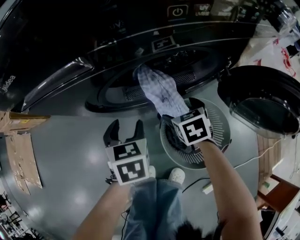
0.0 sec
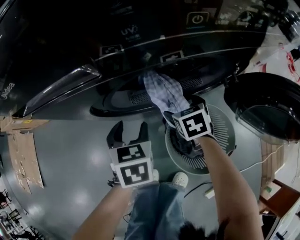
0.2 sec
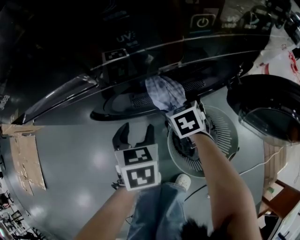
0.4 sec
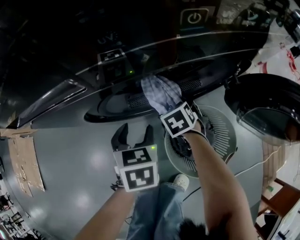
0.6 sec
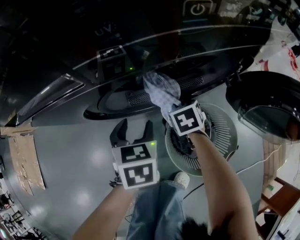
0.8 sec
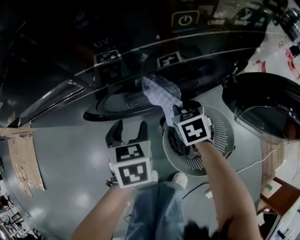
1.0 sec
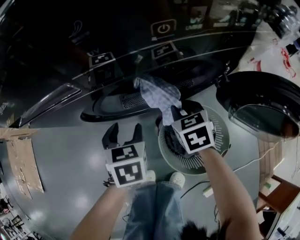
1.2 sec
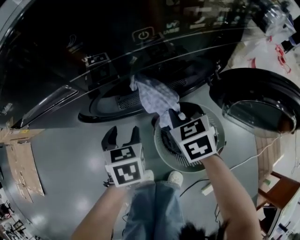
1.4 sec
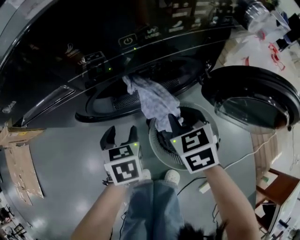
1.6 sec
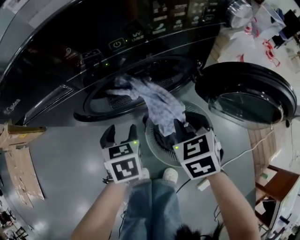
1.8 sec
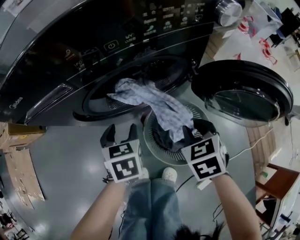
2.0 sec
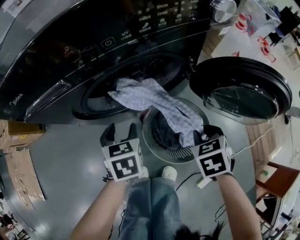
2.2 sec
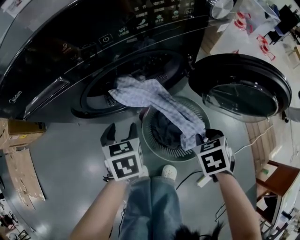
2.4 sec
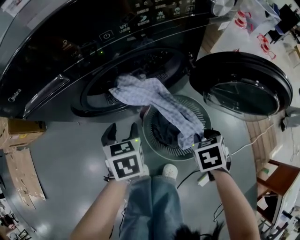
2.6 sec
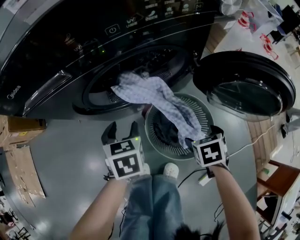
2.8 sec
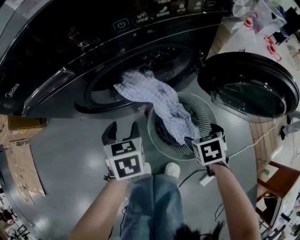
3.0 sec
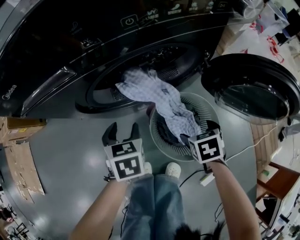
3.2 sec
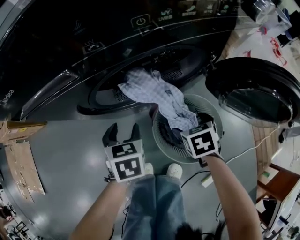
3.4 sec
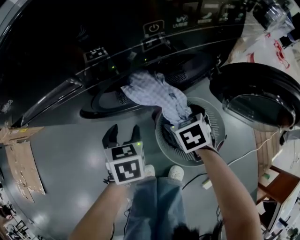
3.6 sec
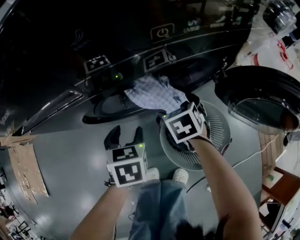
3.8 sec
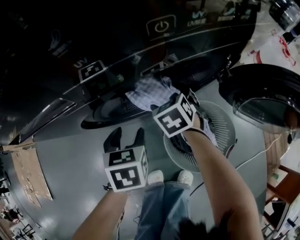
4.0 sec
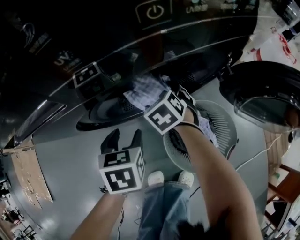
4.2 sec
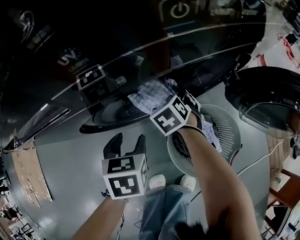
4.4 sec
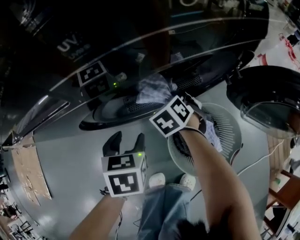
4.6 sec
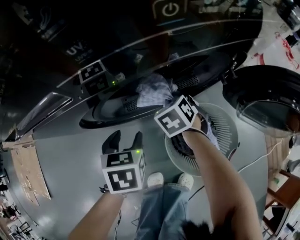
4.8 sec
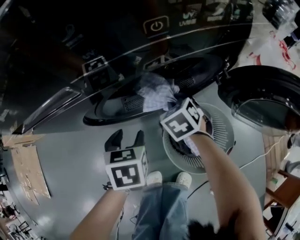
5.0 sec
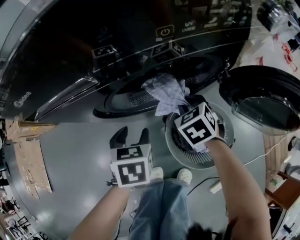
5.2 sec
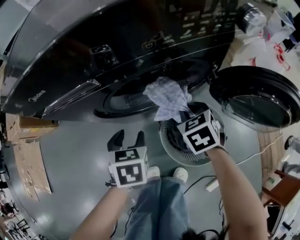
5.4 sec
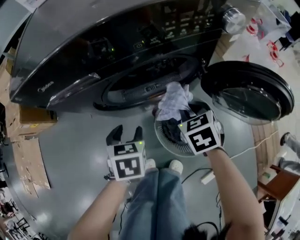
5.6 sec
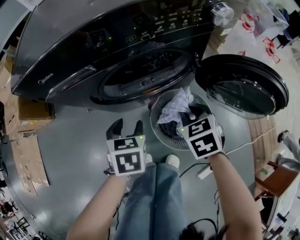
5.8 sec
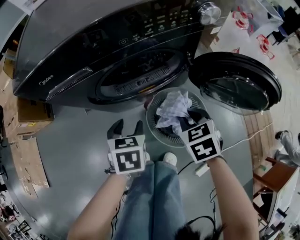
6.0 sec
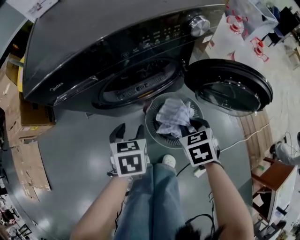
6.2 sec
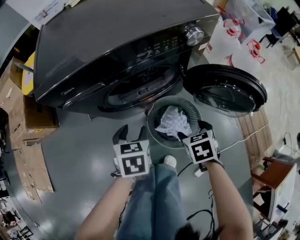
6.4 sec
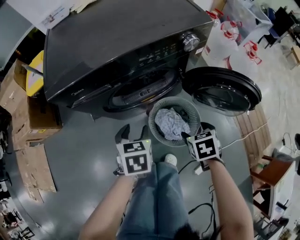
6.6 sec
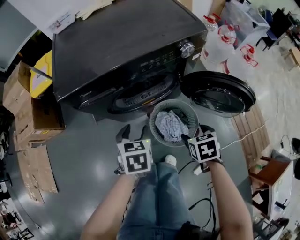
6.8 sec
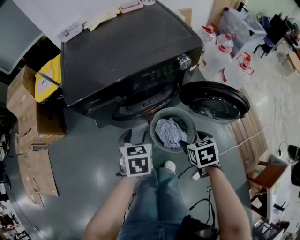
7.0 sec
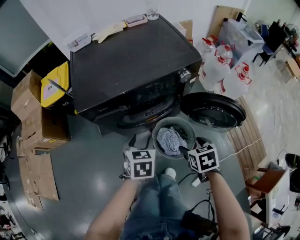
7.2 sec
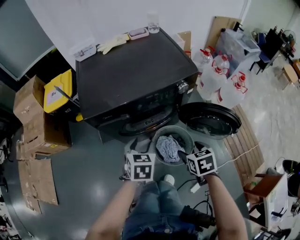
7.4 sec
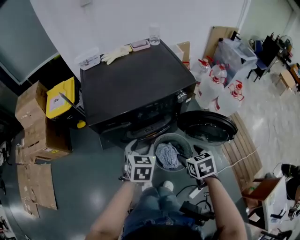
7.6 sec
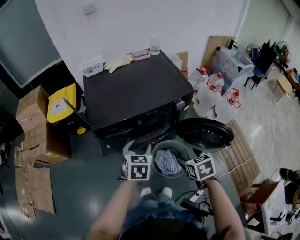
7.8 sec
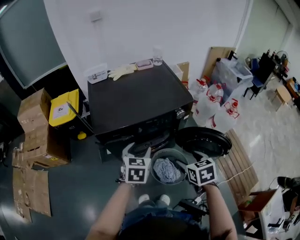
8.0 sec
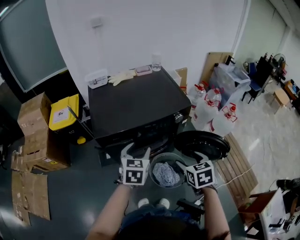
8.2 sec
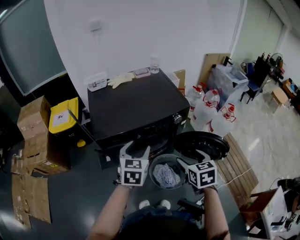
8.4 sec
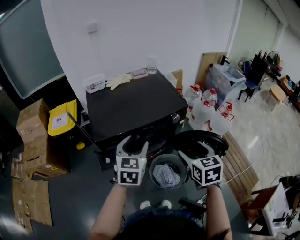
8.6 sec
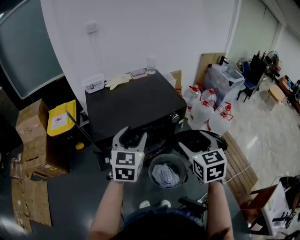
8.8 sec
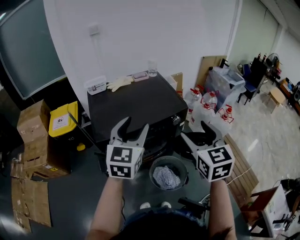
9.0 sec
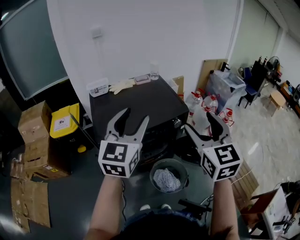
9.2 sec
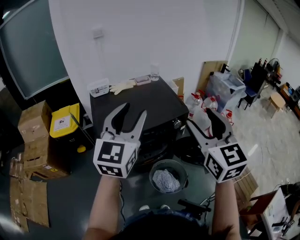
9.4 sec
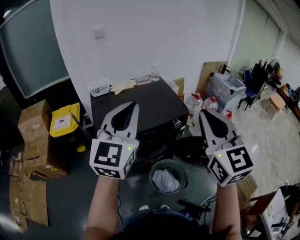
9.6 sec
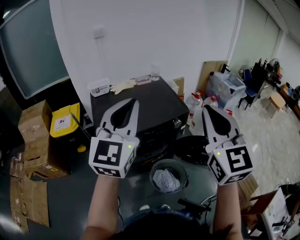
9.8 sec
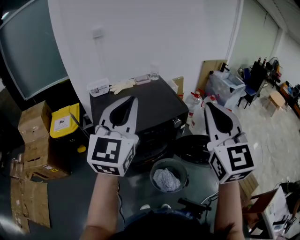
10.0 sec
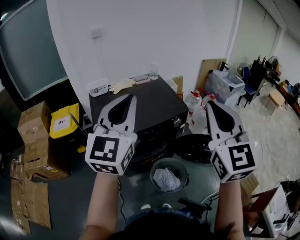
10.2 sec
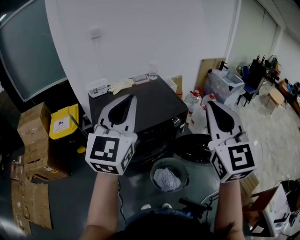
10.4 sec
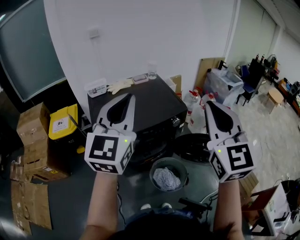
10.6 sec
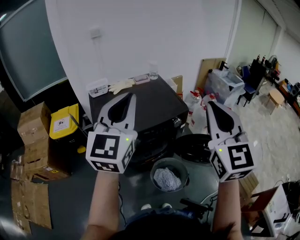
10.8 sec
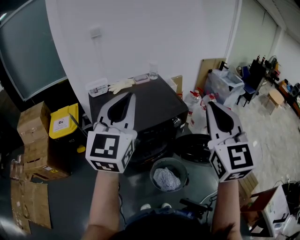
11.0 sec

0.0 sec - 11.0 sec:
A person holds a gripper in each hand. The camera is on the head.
0.0 sec - 1.6 sec: The right gripper is displaced upward by approximately 10 cm, and closes.
1.6 sec - 3.2 sec: The right gripper goes about 15 cm backward, downward and to the right, turns by about 30 degrees, and opens its fingers.
3.2 sec - 4.8 sec: The left gripper shifts by roughly 5 cm. The right gripper goes roughly 25 cm forward and to the left, rotates some 20 degrees, and closes up.
4.8 sec - 6.2 sec: The left gripper moves upward, backward and to the right, approximately 20 cm, while the right gripper goes some 30 cm backward, upward and to the right.
6.2 sec - 7.8 sec: The grippers both shift upward by roughly 25 cm. The right gripper opens its fingers.
7.8 sec - 9.4 sec: The two grippers go approximately 35 cm upward. The left gripper tilts its fingers roughly 50 degrees upward, while the right gripper tips its fingers upward by roughly 50 degrees.
9.4 sec - 11.0 sec: The left gripper ends up some 5 cm from where it was, and closes; the right gripper ends up roughly 5 cm from where it was, and closes its fingers.

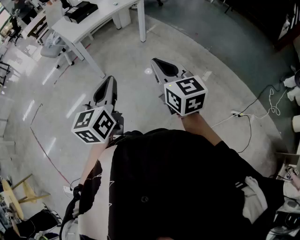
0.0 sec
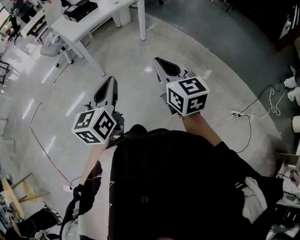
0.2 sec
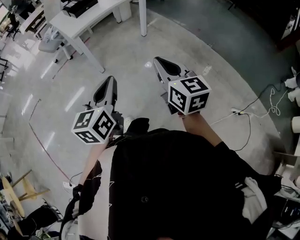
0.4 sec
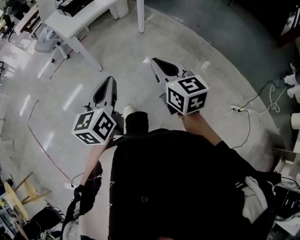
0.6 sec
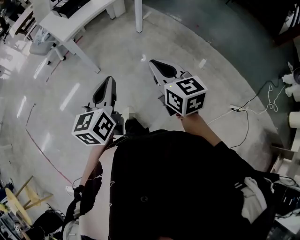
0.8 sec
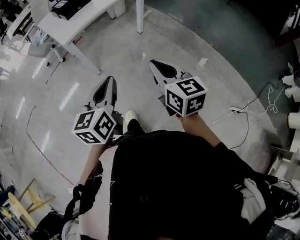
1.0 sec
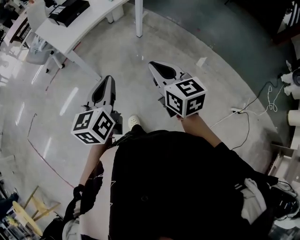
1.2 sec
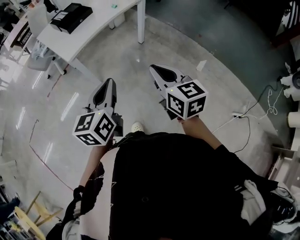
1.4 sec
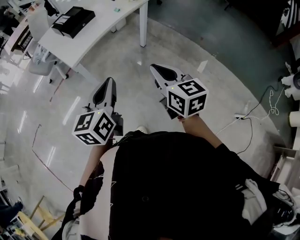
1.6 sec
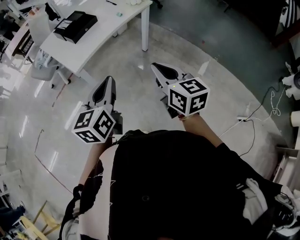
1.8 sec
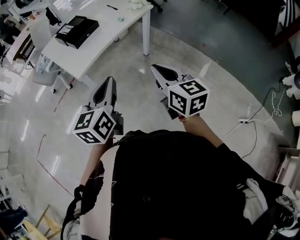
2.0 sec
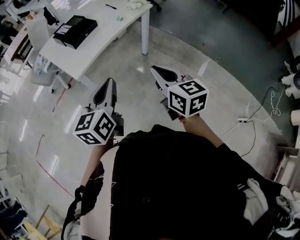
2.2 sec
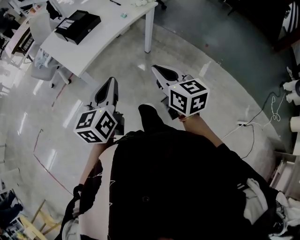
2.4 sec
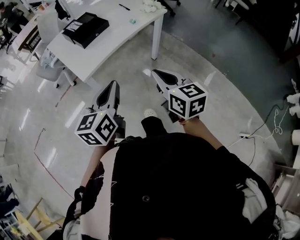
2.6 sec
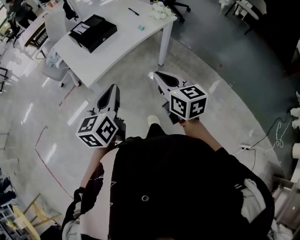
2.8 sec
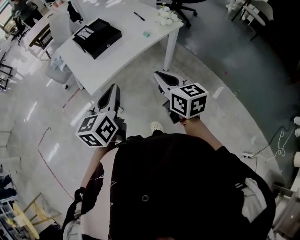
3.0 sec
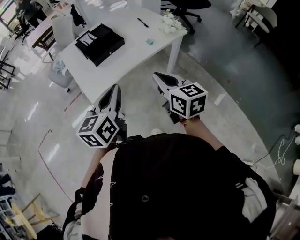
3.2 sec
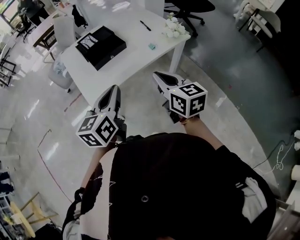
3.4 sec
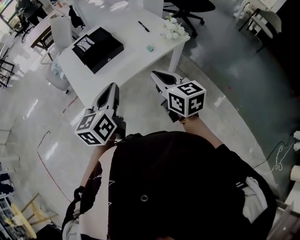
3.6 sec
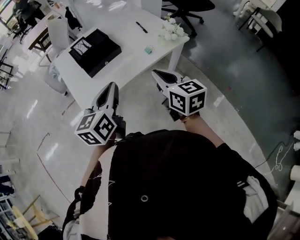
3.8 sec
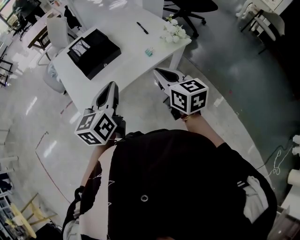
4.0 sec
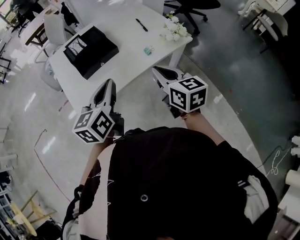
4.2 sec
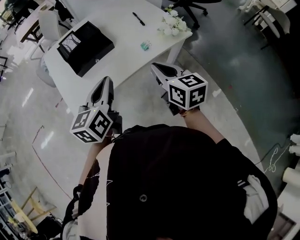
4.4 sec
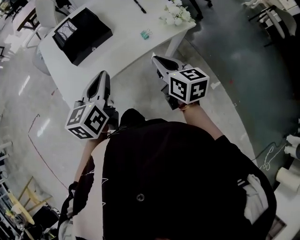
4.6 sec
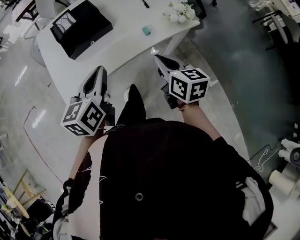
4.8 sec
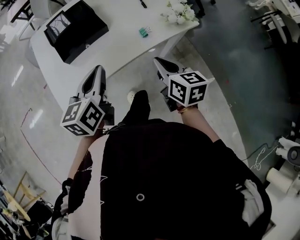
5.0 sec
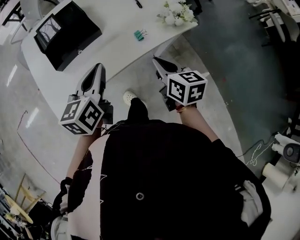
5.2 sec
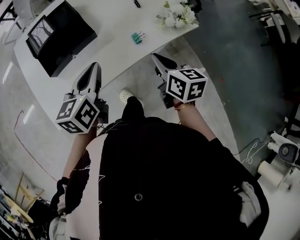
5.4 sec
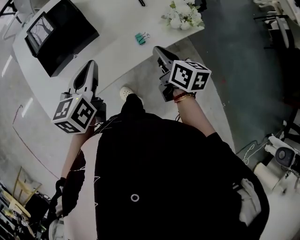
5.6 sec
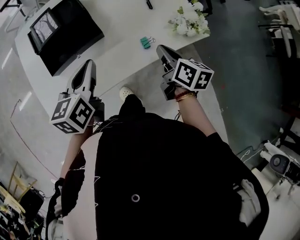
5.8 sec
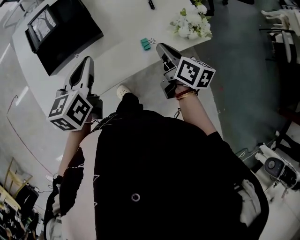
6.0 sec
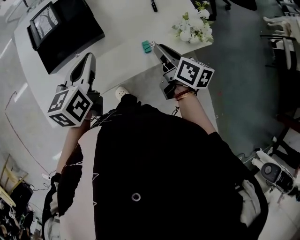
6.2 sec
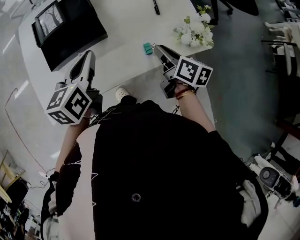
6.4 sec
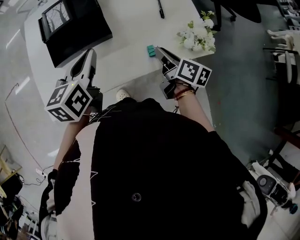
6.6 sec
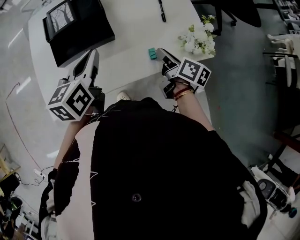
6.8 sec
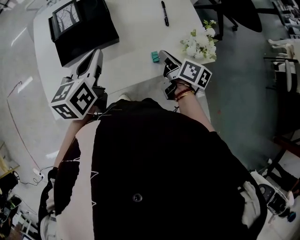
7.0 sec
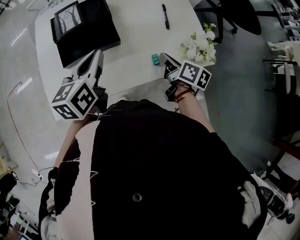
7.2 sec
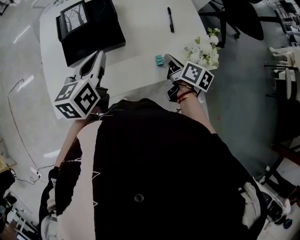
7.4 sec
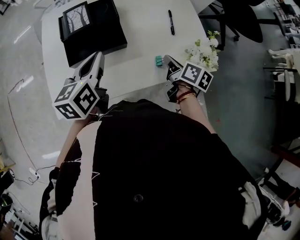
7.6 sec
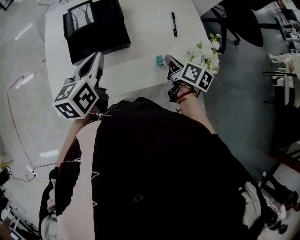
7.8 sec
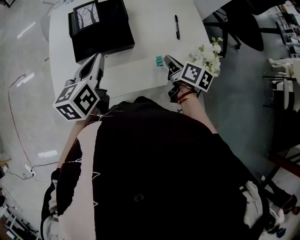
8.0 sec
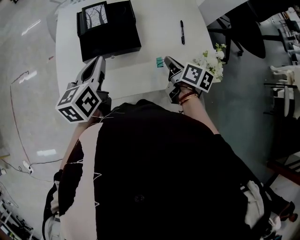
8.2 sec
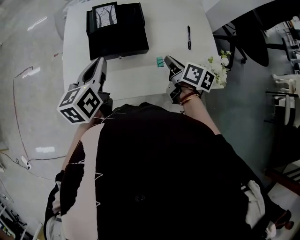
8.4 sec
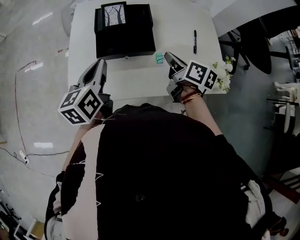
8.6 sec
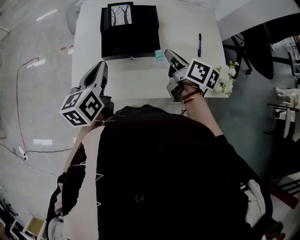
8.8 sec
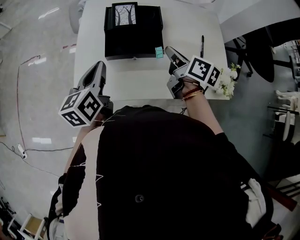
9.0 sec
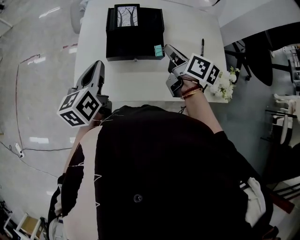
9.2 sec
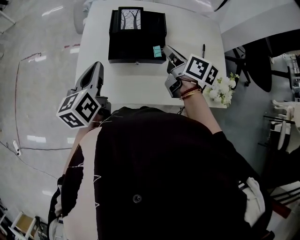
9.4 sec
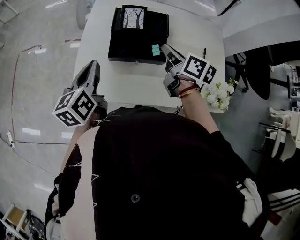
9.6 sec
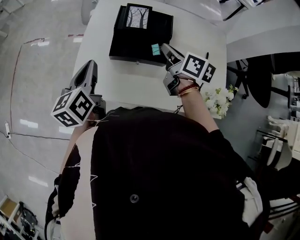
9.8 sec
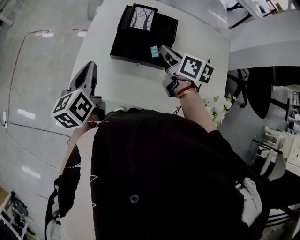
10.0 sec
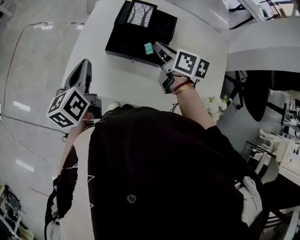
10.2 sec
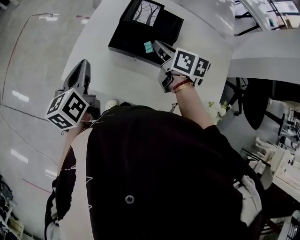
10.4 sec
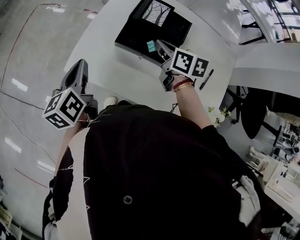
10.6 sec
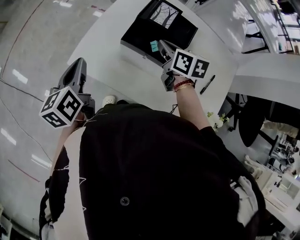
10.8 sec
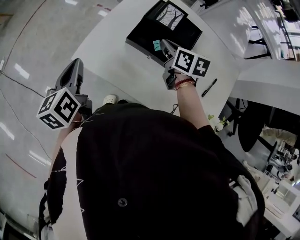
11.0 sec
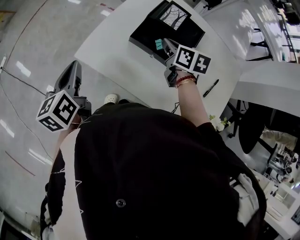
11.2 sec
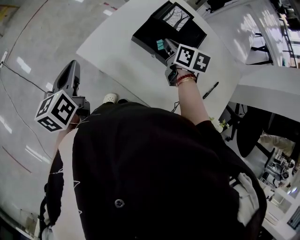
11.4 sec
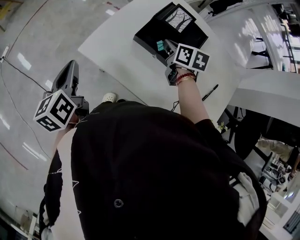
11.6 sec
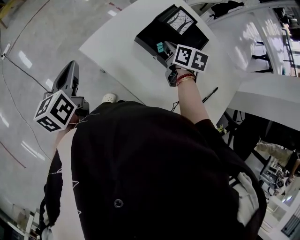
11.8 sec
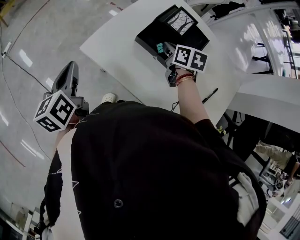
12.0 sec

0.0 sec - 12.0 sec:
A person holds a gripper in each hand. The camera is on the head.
0.0 sec - 1.6 sec: The left gripper travels forward by some 25 cm, while the right gripper shifts approximately 25 cm forward and to the left.
1.6 sec - 3.0 sec: The grippers both shift forward by some 20 cm.
3.0 sec - 4.4 sec: The grippers both shift forward by some 20 cm.
4.4 sec - 6.0 sec: Both grippers move forward and downward, roughly 20 cm. The right gripper changes its angle by roughly 30 degrees.
6.0 sec - 7.6 sec: The left gripper shifts about 5 cm upward.
7.6 sec - 9.0 sec: The right gripper heads to the left, upward and forward, covering about 20 cm, and turns by approximately 20 degrees. The left gripper shifts some 15 cm to the left.
9.0 sec - 10.4 sec: The right gripper moves about 10 cm, and turns by about 30 degrees; the left gripper ends up about 5 cm from where it was, and turns by about 30 degrees.
10.4 sec - 12.0 sec: The right gripper moves downward, roughly 5 cm, and swivels roughly 20 degrees. The left gripper is displaced to the left and backward by roughly 15 cm, and swivels approximately 20 degrees.

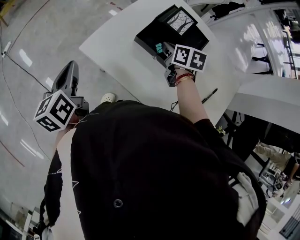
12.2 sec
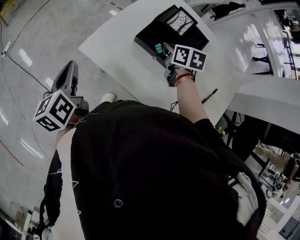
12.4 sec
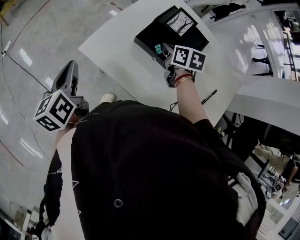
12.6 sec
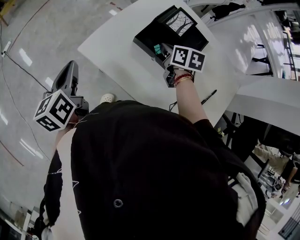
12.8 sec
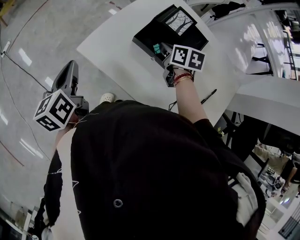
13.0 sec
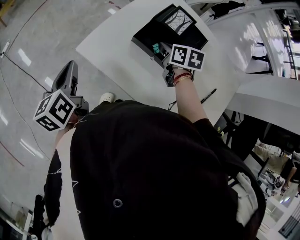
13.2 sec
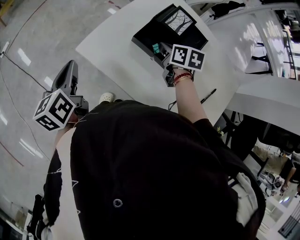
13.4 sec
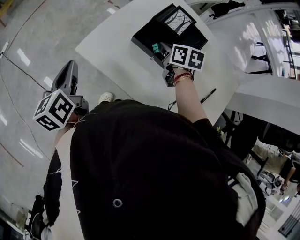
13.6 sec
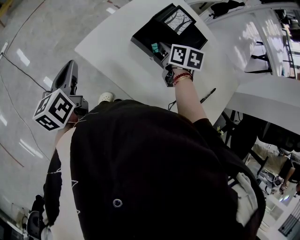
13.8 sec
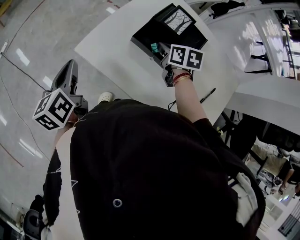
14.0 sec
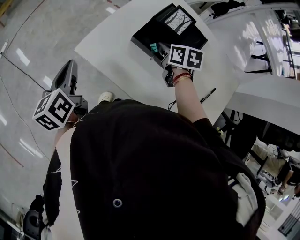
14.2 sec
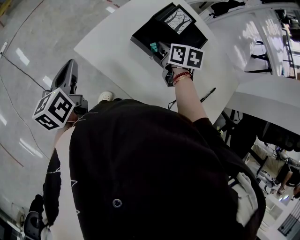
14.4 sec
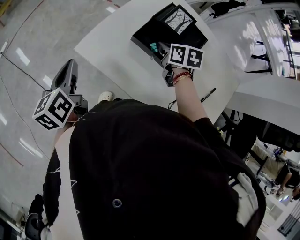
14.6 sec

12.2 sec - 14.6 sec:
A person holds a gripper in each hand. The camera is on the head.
12.2 sec - 13.4 sec: Both grippers stay about where they are.
13.4 sec - 14.6 sec: Both grippers stay about where they are.
